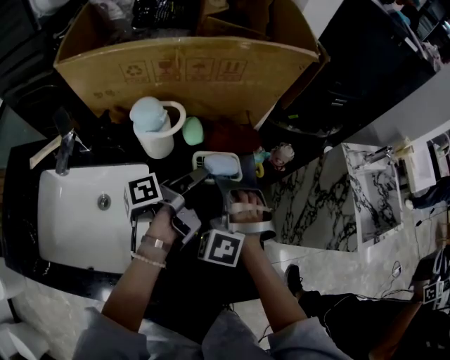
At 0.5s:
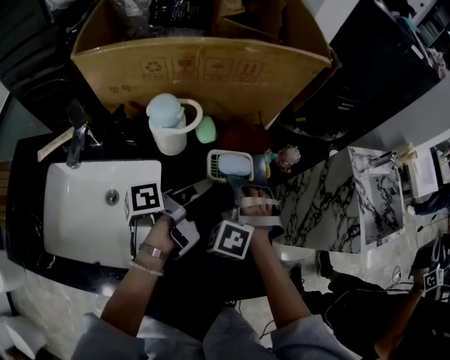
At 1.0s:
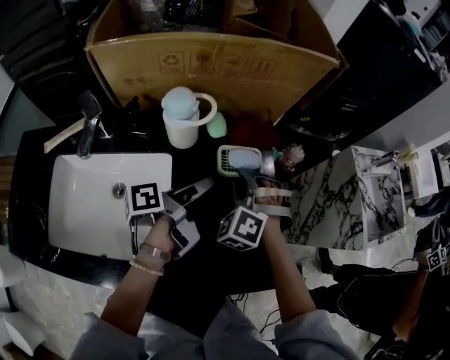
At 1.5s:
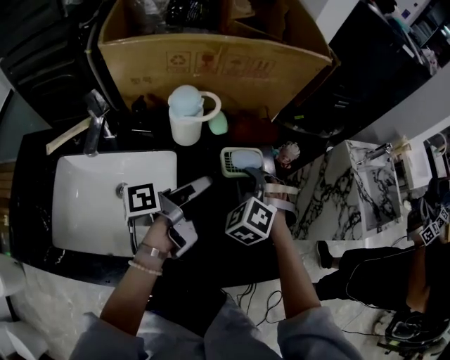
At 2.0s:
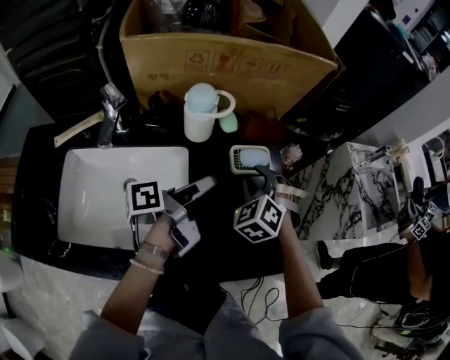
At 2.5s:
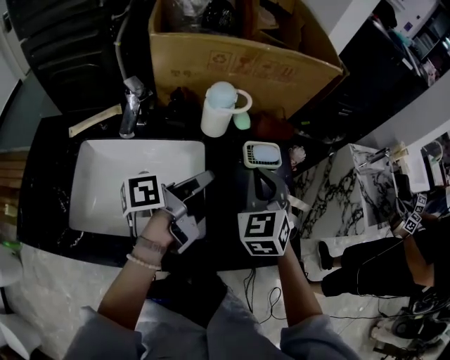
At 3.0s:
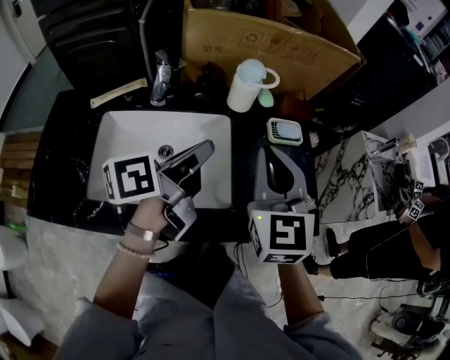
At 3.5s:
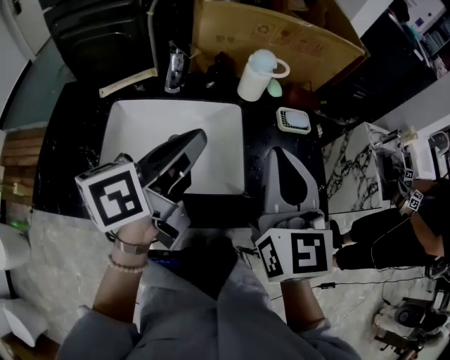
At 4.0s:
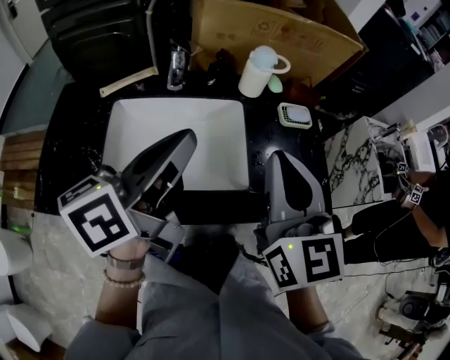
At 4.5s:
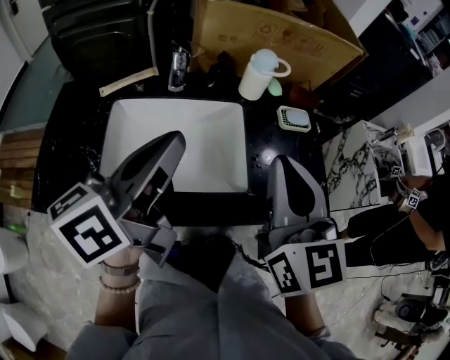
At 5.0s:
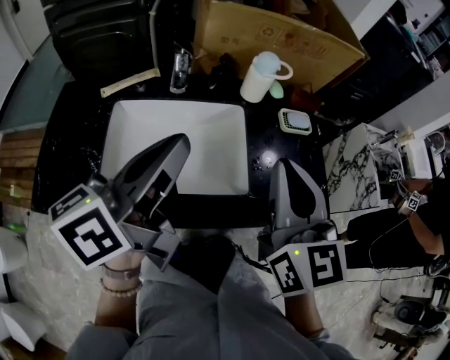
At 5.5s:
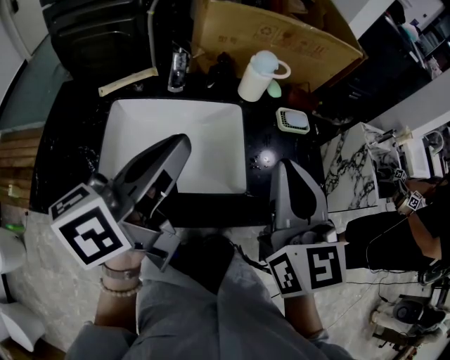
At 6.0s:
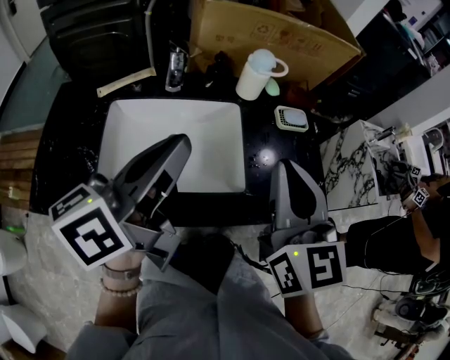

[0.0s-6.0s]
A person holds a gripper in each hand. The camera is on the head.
0.0s to 2.0s: The right gripper changes its angle by some 20 degrees.
2.0s to 4.0s: The right gripper changes place by approximately 35 cm, tips its fingers upward by about 40 degrees, and closes its fingers.

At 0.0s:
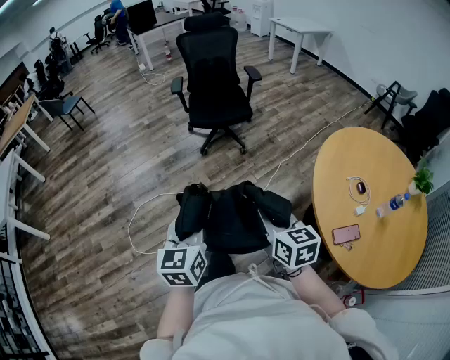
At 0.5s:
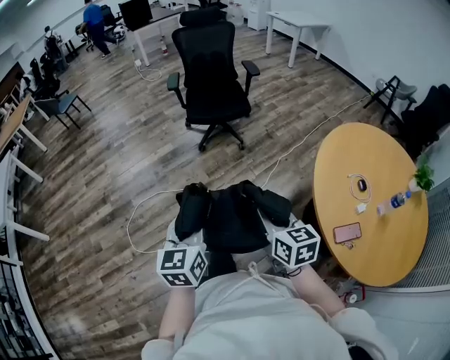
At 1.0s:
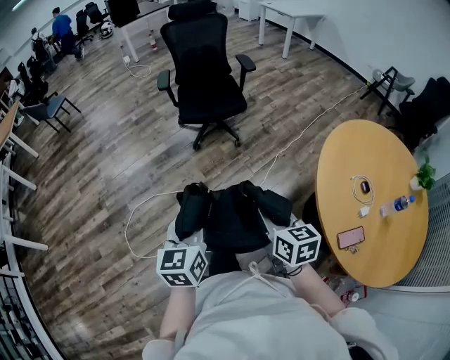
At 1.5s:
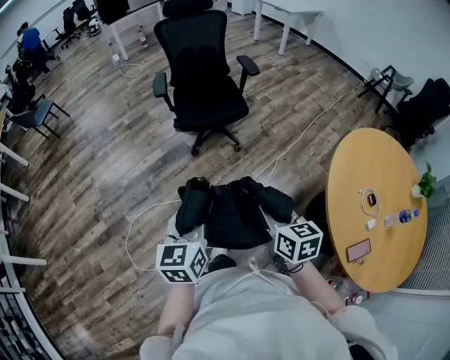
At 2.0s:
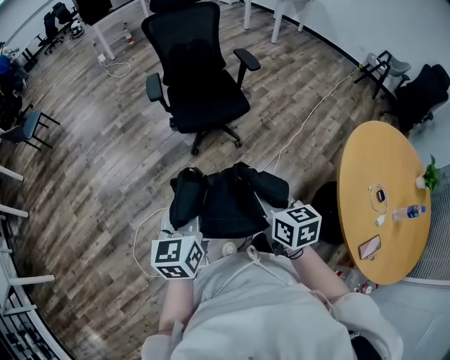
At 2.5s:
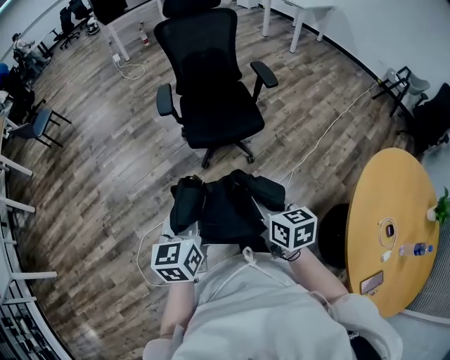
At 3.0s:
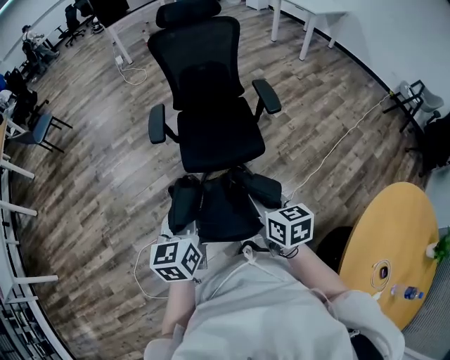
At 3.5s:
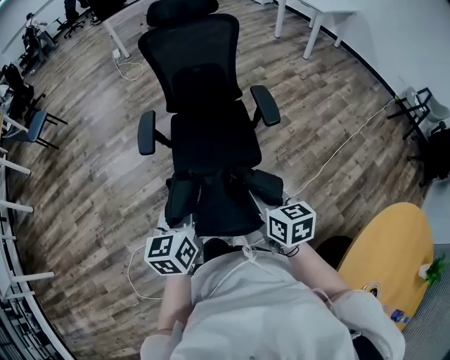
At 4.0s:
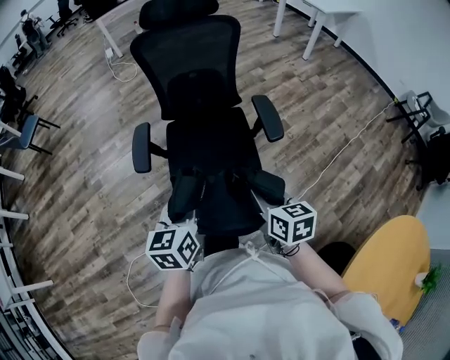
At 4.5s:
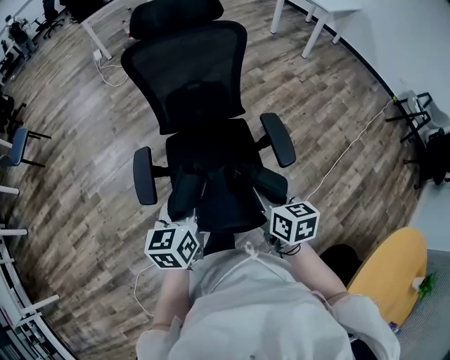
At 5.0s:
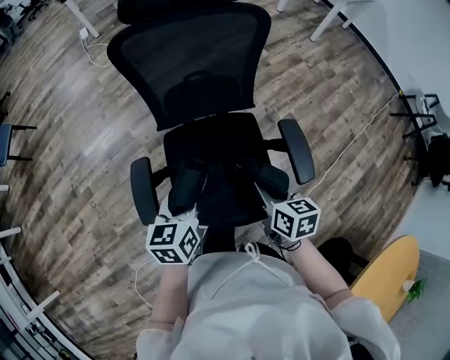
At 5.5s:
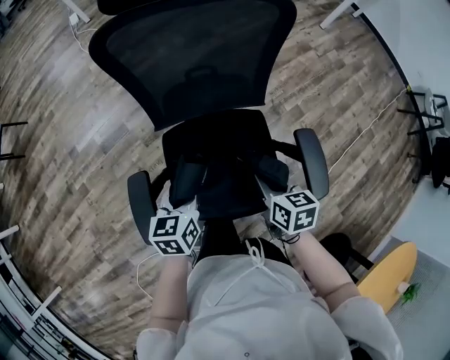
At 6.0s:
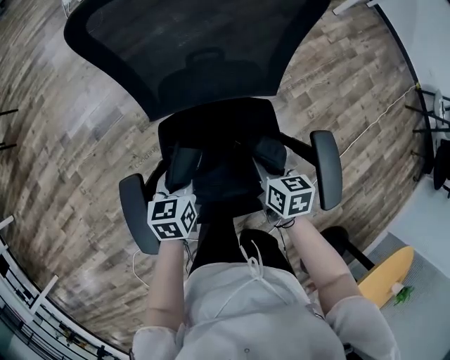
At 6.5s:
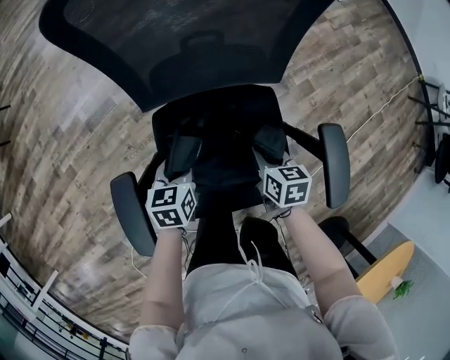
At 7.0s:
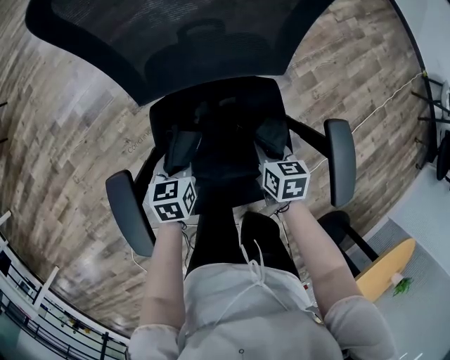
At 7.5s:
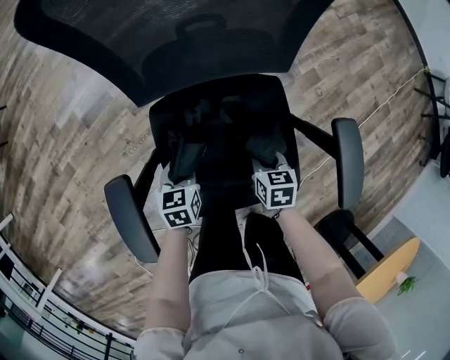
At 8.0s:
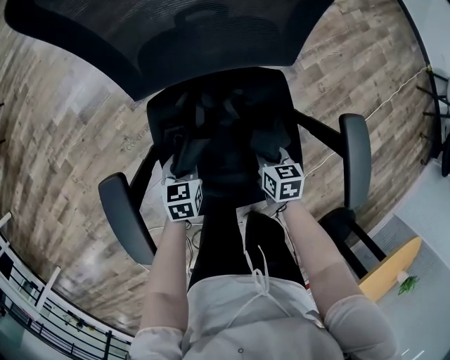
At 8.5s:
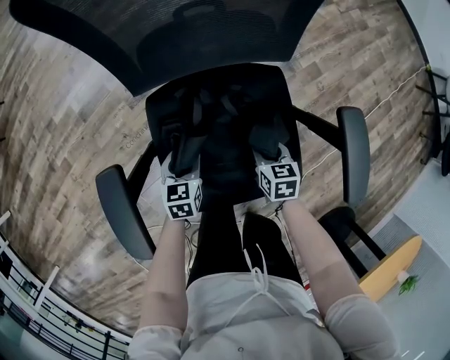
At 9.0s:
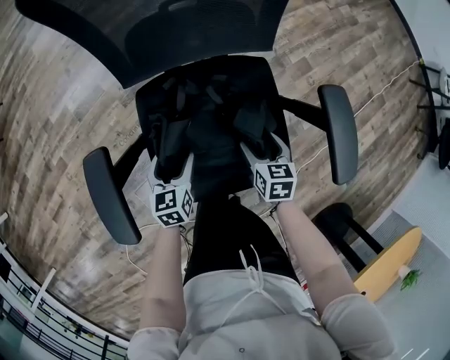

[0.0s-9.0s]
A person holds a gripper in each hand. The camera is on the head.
0.0s to 2.0s: The grippers both shift forward by roughly 35 cm.
2.0s to 4.5s: The pair of grippers is taken forward, some 70 cm.
4.5s to 7.0s: The two grippers go about 50 cm downward and forward. The right gripper changes its angle by approximately 20 degrees. The left gripper swivels some 20 degrees.
7.0s to 9.0s: The two grippers go some 10 cm backward. The right gripper opens up. Meanwhile the left gripper opens up.

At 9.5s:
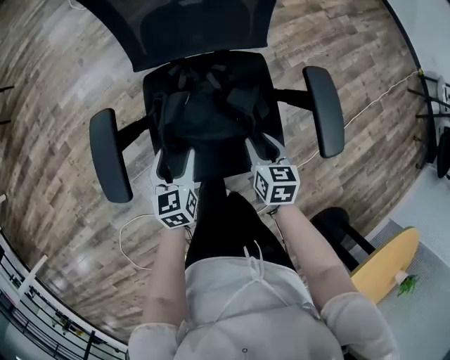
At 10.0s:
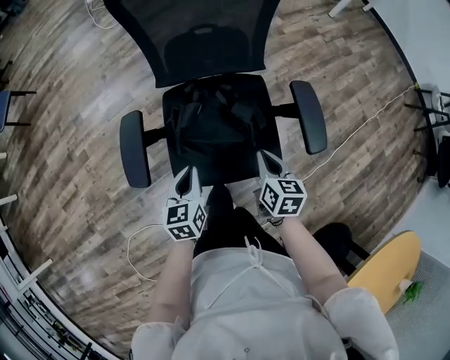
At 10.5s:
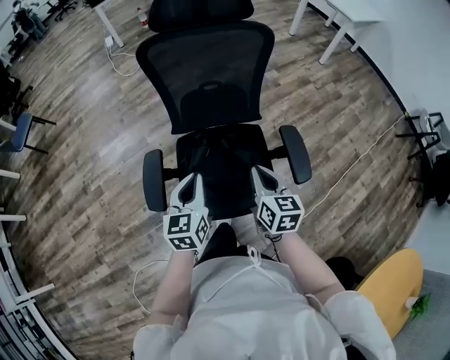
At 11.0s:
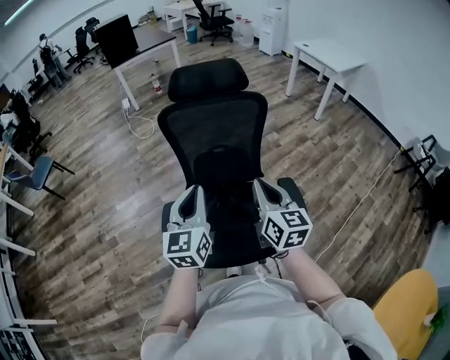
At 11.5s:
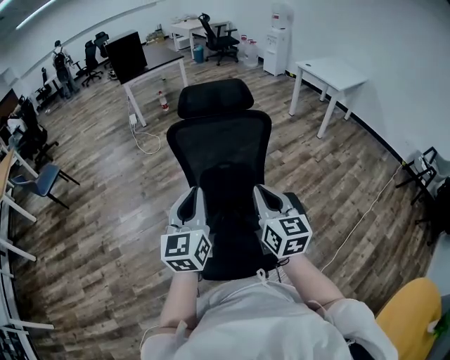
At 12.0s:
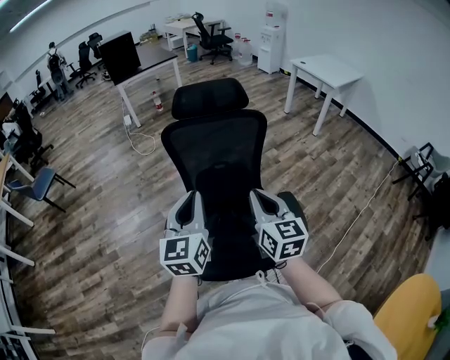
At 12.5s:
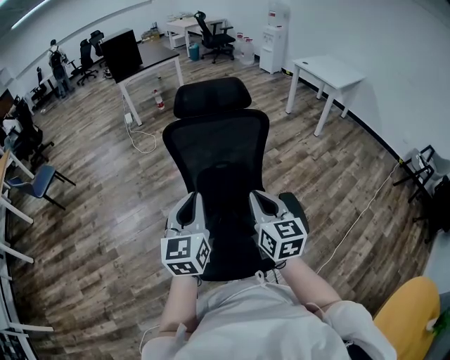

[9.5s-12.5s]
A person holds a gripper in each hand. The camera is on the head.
9.5s to 11.0s: The grippers both shift upward by about 50 cm. The right gripper angles its fingers upward, by roughly 40 degrees, and closes. The left gripper points its fingers some 30 degrees further upward, and closes its fingers.
11.0s to 12.5s: There are only small adjustments of the grippers.

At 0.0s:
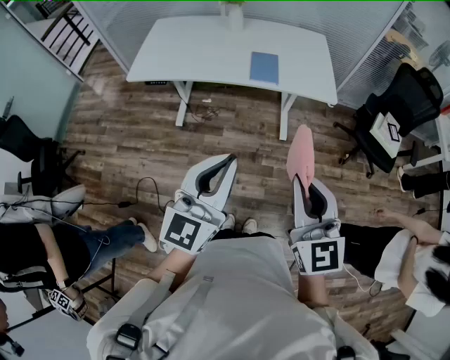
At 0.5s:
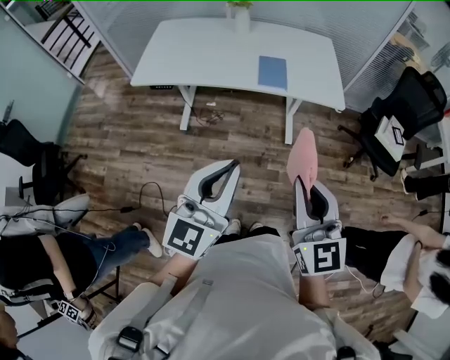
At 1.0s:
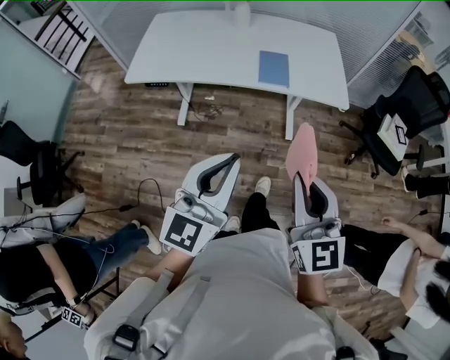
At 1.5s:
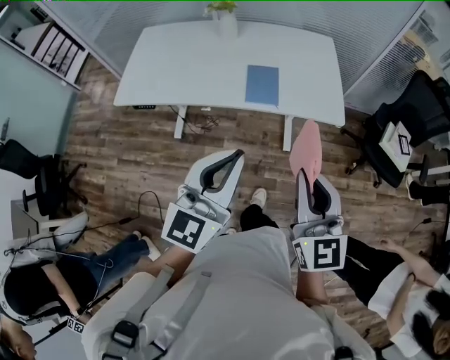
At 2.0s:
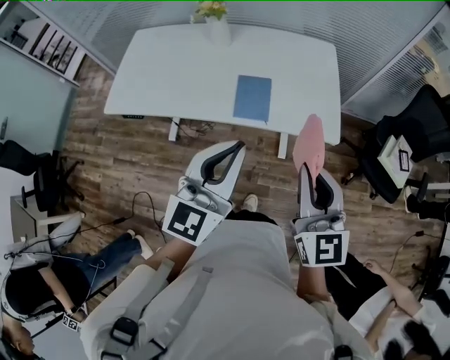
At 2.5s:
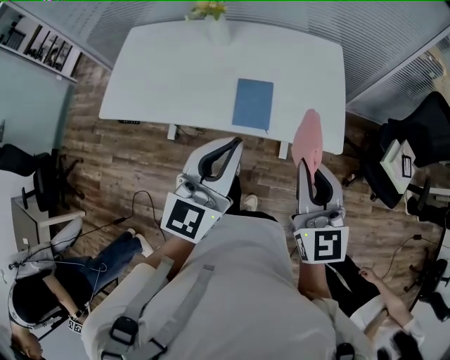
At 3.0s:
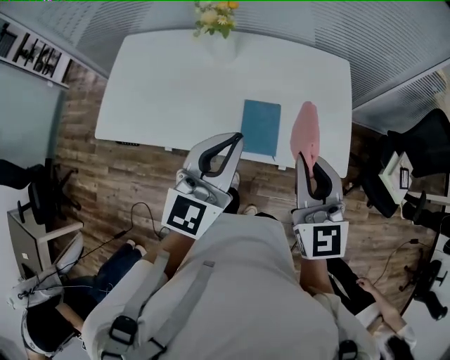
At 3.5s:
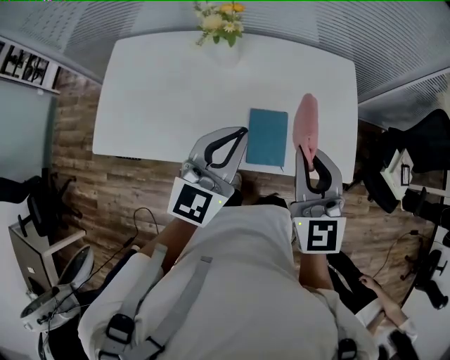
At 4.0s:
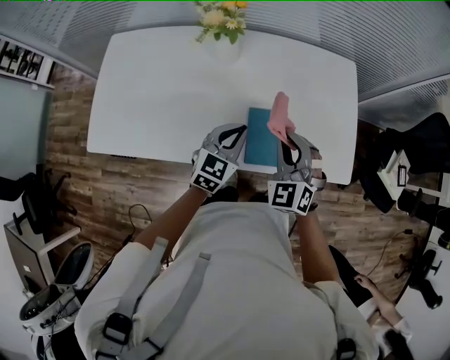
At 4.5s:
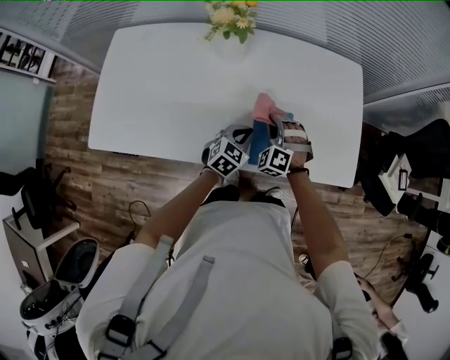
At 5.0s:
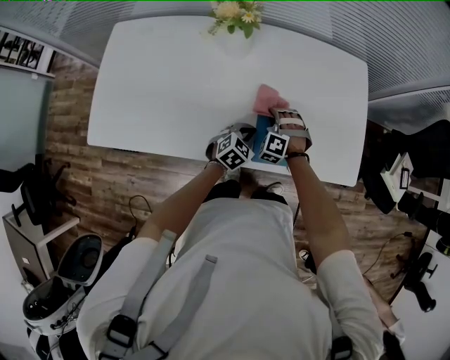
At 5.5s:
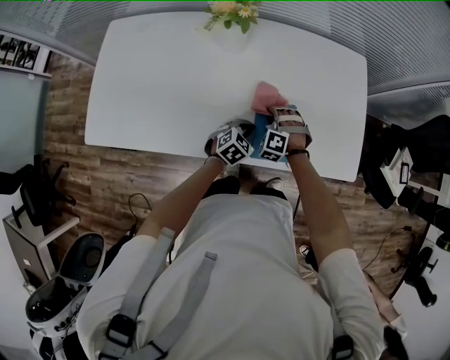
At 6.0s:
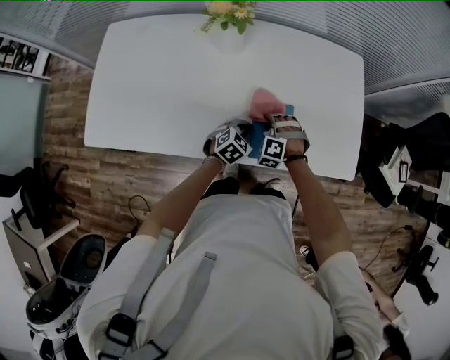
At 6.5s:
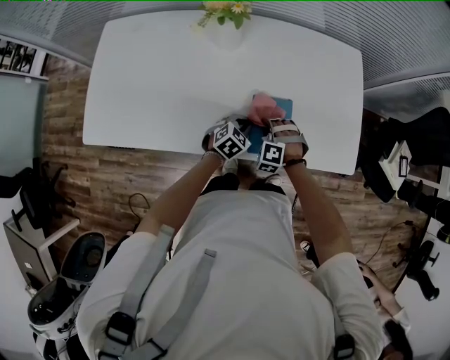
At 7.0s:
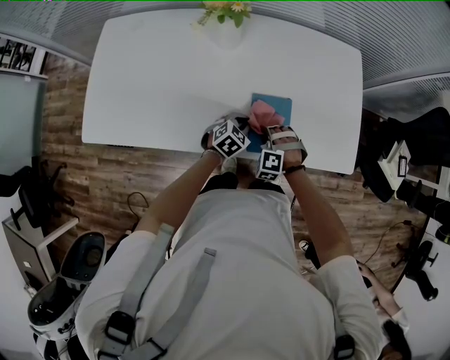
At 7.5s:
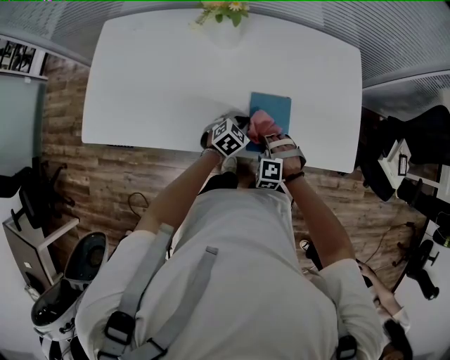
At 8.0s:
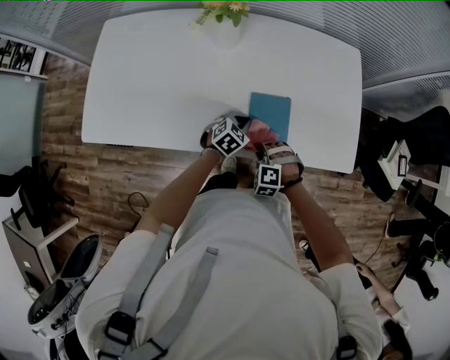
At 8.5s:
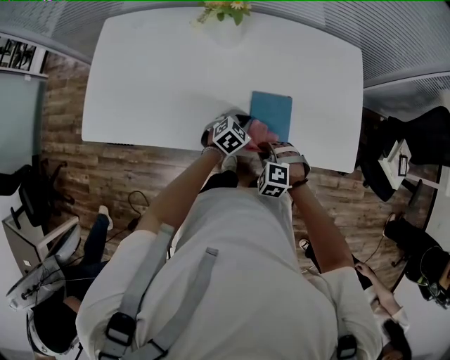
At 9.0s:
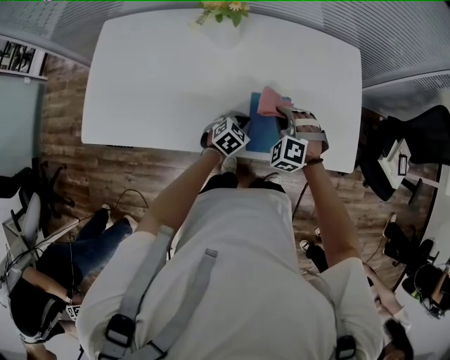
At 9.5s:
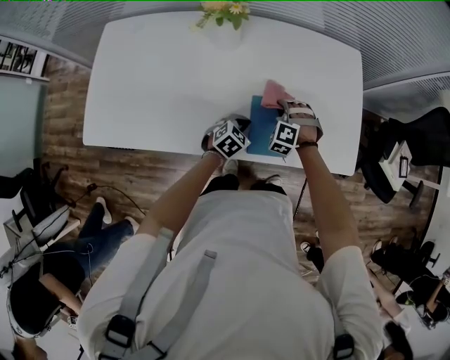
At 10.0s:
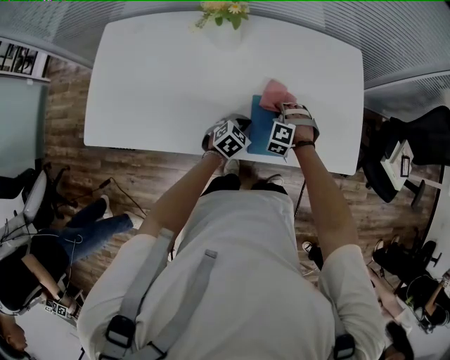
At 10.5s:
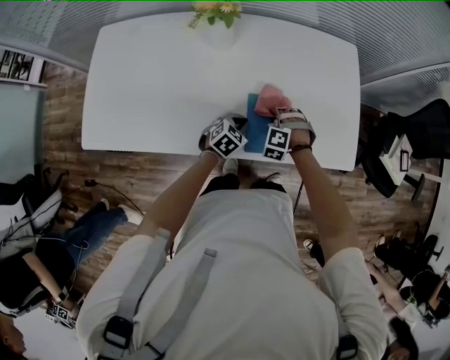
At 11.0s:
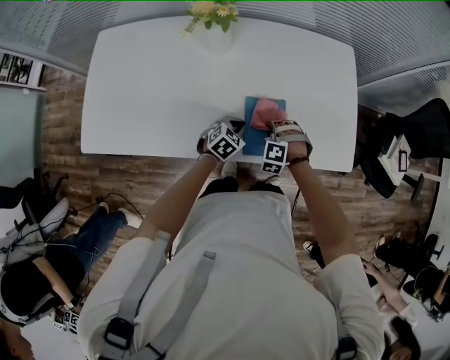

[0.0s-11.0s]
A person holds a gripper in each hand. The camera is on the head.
0.0s to 2.0s: The grippers both shift forward by about 35 cm.
2.0s to 3.5s: Both grippers move forward and to the left, roughly 30 cm.
3.5s to 5.5s: The grippers both shift downward by some 40 cm. The left gripper tilts its fingers approximately 40 degrees downward; the right gripper rolls counterclockwise, seen from behind, by approximately 60 degrees.
5.5s to 7.5s: The right gripper moves backward, roughly 10 cm.
7.5s to 9.0s: The right gripper is displaced upward and forward by approximately 15 cm.
9.0s to 11.0s: The right gripper is displaced downward by some 10 cm.
